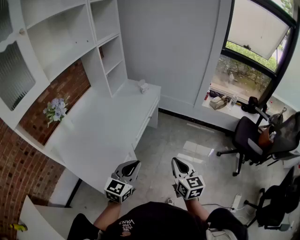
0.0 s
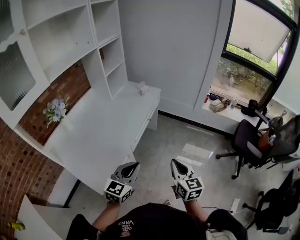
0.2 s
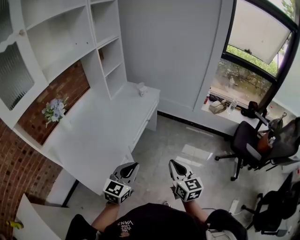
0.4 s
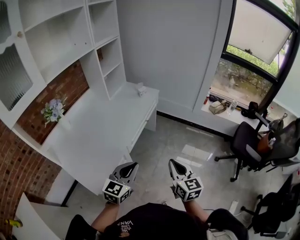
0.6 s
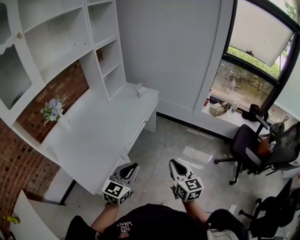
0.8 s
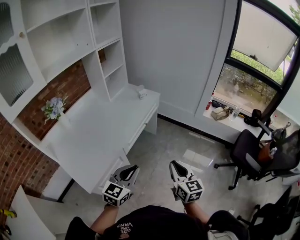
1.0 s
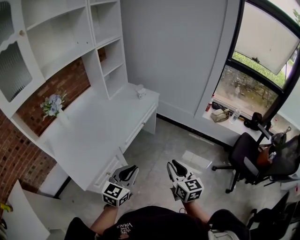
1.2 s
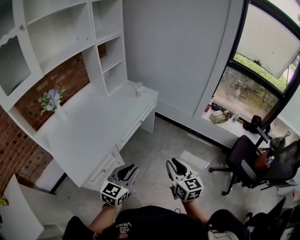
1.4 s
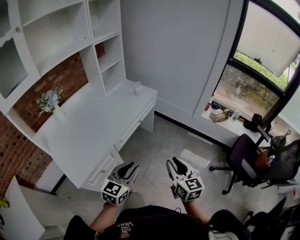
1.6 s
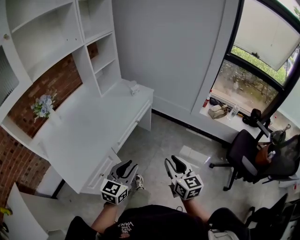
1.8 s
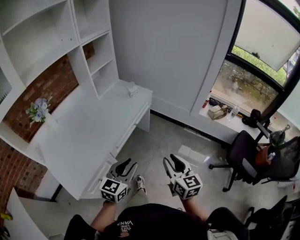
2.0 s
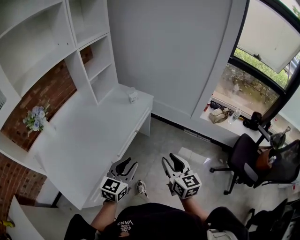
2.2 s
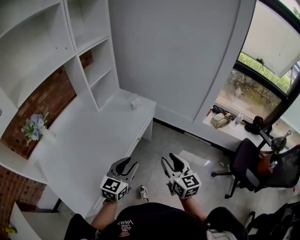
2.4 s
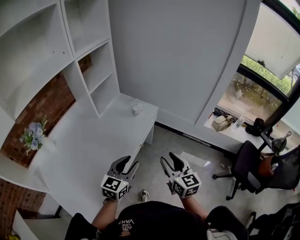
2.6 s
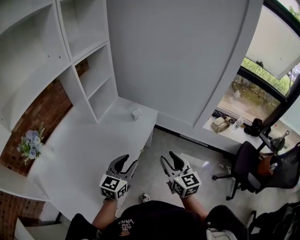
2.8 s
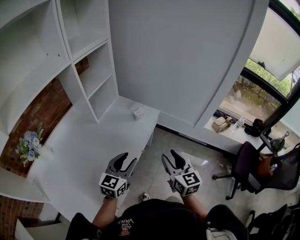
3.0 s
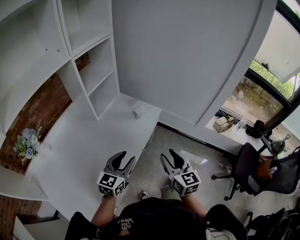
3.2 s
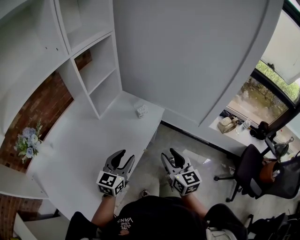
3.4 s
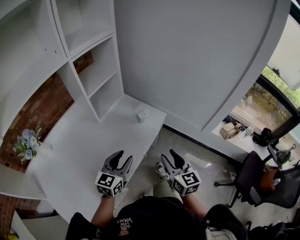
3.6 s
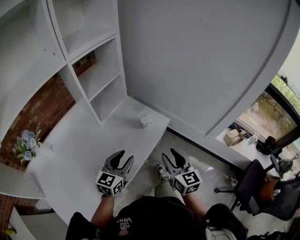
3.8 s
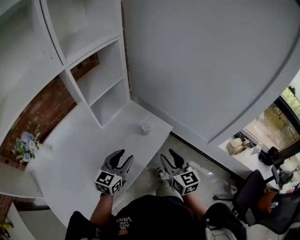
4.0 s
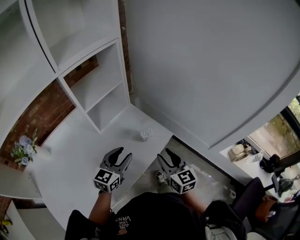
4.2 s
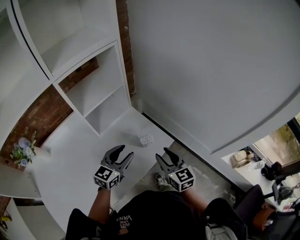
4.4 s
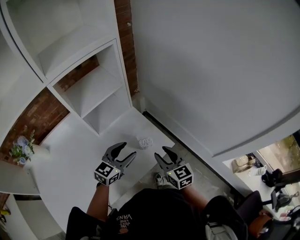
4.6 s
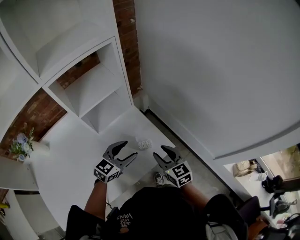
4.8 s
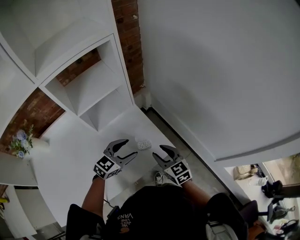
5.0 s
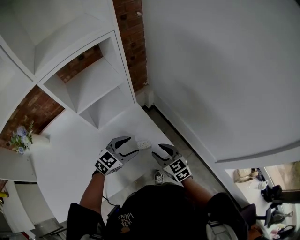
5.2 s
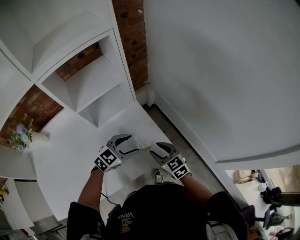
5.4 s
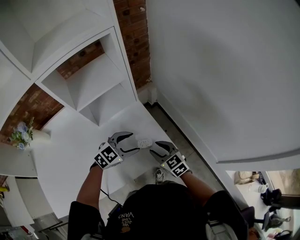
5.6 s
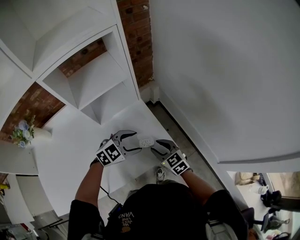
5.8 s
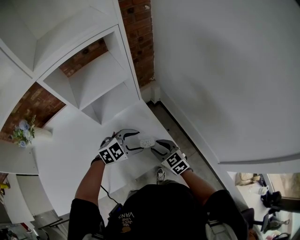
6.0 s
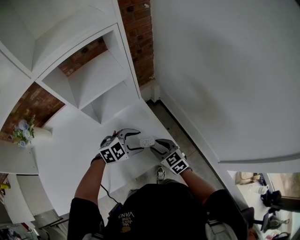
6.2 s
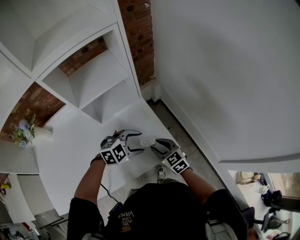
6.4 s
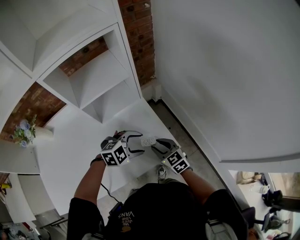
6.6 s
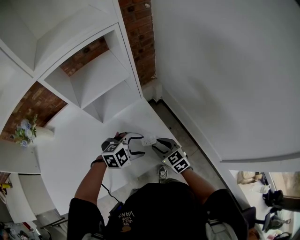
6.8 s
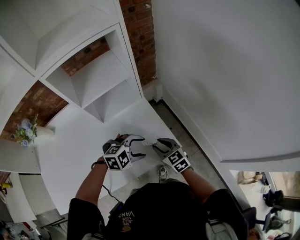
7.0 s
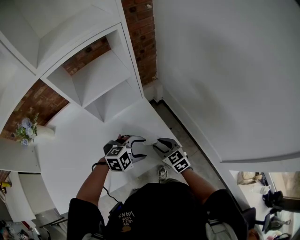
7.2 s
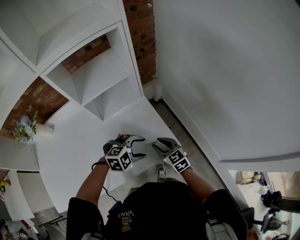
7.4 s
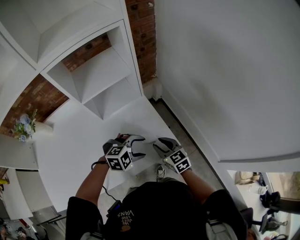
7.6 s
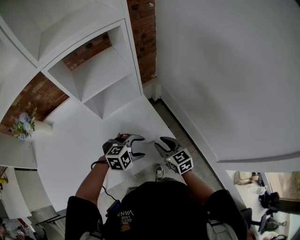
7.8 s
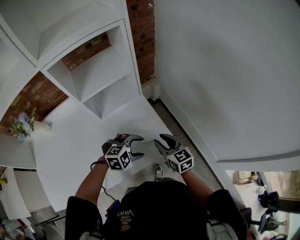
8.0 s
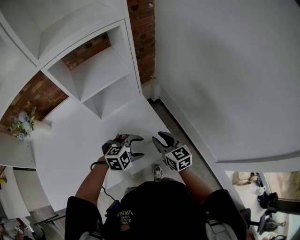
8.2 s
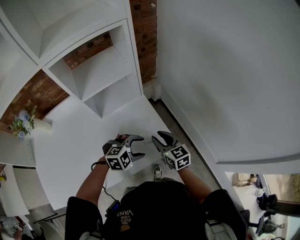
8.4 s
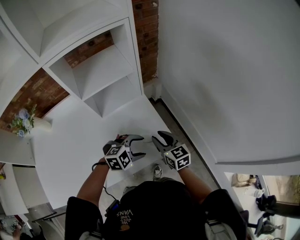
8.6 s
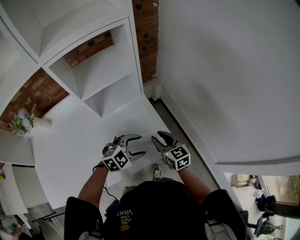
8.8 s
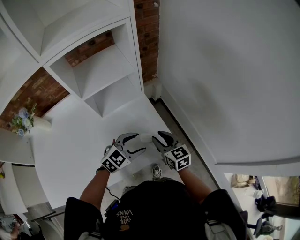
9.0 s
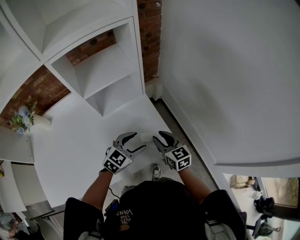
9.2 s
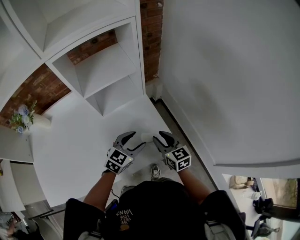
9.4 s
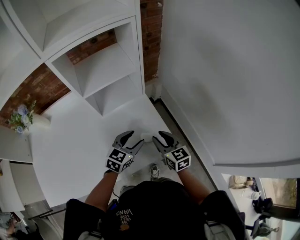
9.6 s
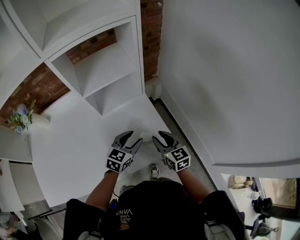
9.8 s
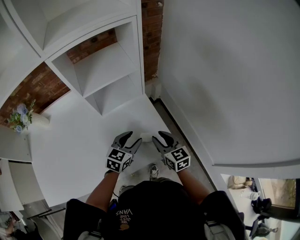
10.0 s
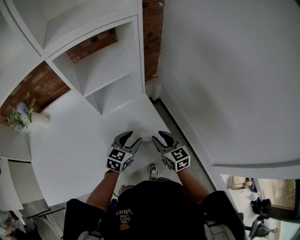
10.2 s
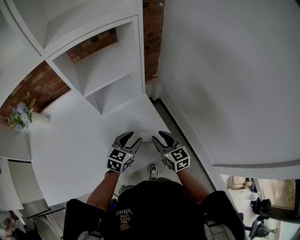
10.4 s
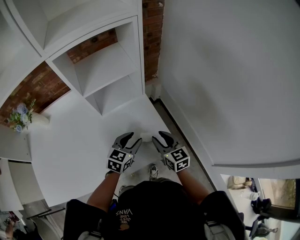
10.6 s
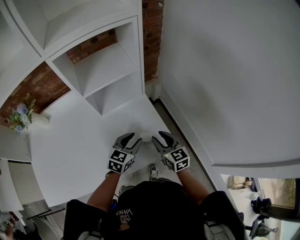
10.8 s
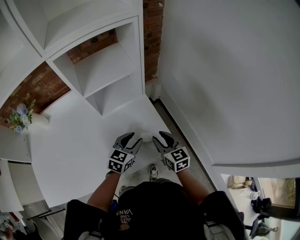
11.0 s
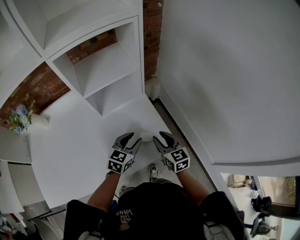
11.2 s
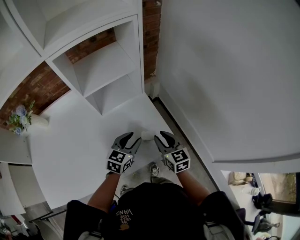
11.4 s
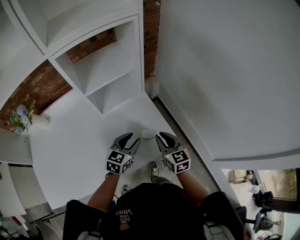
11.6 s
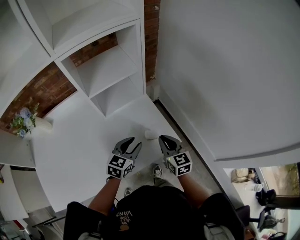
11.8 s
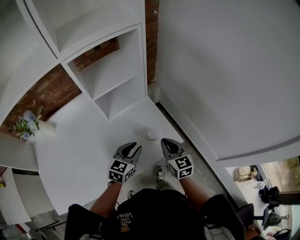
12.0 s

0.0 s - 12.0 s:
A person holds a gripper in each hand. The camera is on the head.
0.0 s - 1.6 s: The right gripper goes some 15 cm to the right and forward, and opens; the left gripper travels to the right by roughly 10 cm.
1.6 s - 3.0 s: Both grippers travel together forward, some 30 cm.
3.0 s - 4.4 s: The two grippers go approximately 25 cm forward. The right gripper turns by approximately 30 degrees.
4.4 s - 6.0 s: The left gripper moves downward, forward and to the right, some 15 cm, changes its angle by approximately 40 degrees, and opens. Meanwhile the right gripper goes about 15 cm downward and forward, and rotates roughly 40 degrees.
6.0 s - 7.6 s: The left gripper is displaced backward by some 5 cm.
7.6 s - 9.0 s: The left gripper turns by roughly 30 degrees.
9.0 s - 10.4 s: The left gripper swivels approximately 30 degrees.
10.4 s - 12.0 s: The two grippers go approximately 5 cm backward. The right gripper closes.

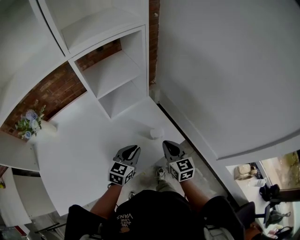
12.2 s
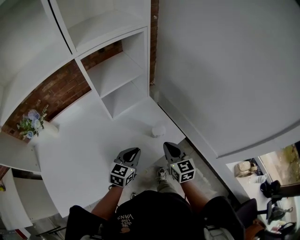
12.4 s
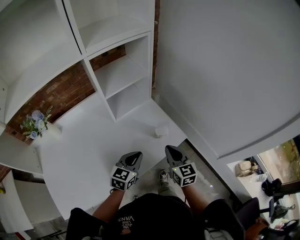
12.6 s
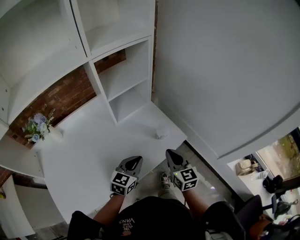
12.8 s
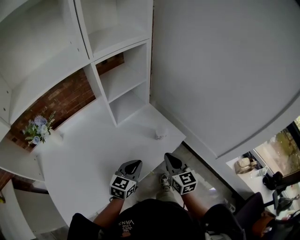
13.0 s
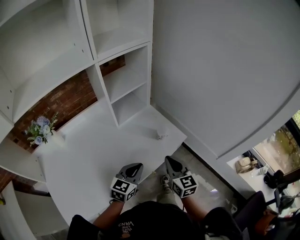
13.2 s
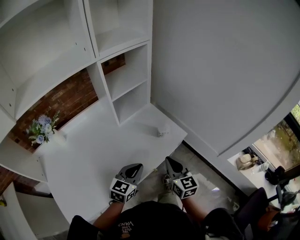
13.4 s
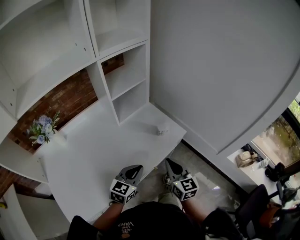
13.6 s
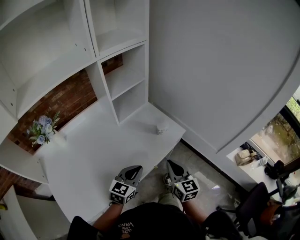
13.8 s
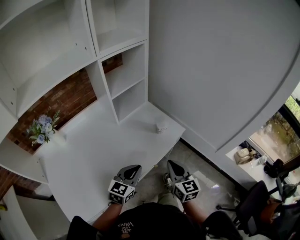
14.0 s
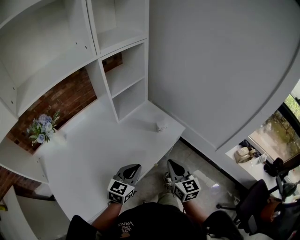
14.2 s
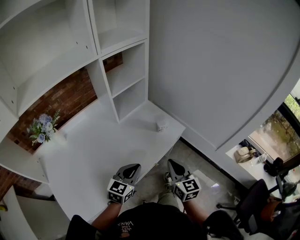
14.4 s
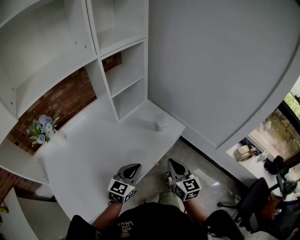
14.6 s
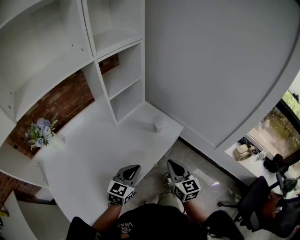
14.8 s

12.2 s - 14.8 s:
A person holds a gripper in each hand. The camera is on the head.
12.2 s - 13.4 s: The two grippers go approximately 15 cm backward.
13.4 s - 14.8 s: The right gripper travels backward by approximately 5 cm.

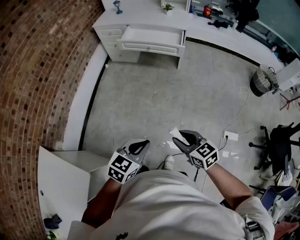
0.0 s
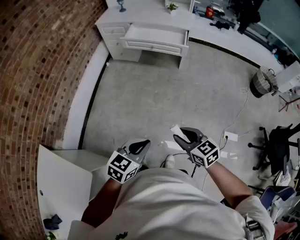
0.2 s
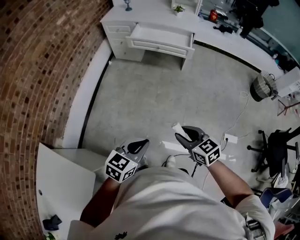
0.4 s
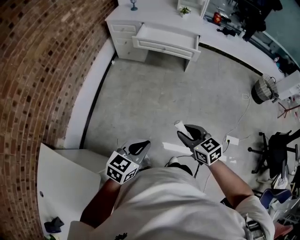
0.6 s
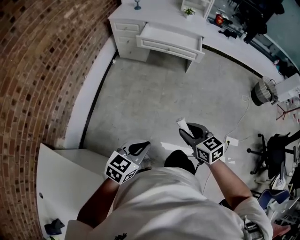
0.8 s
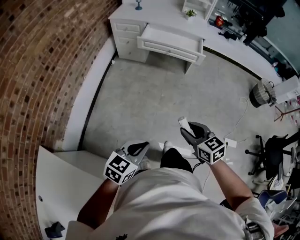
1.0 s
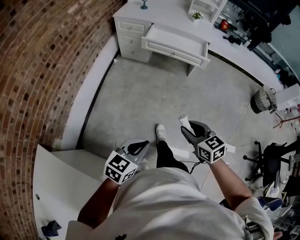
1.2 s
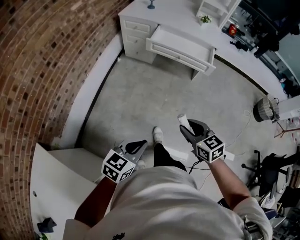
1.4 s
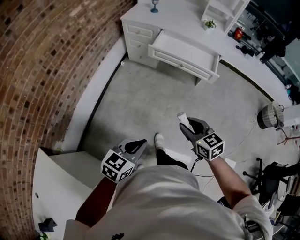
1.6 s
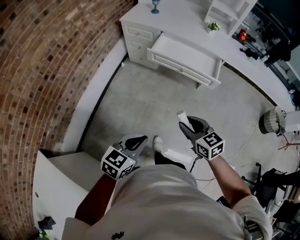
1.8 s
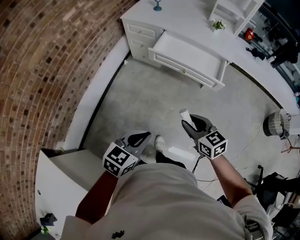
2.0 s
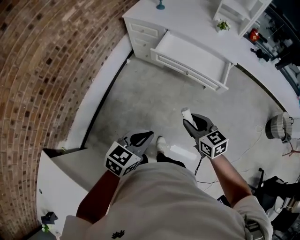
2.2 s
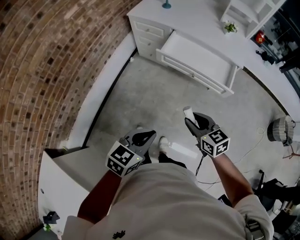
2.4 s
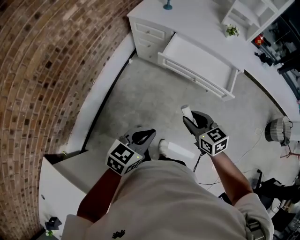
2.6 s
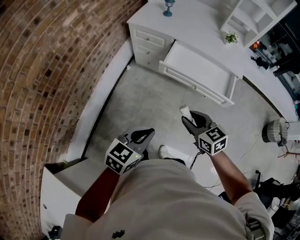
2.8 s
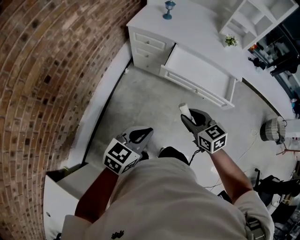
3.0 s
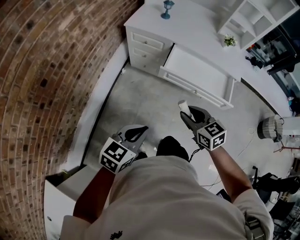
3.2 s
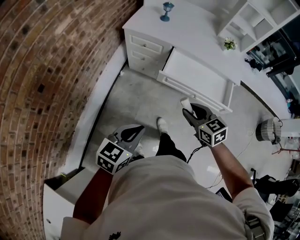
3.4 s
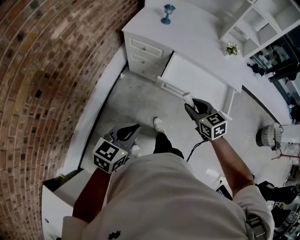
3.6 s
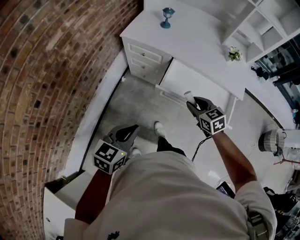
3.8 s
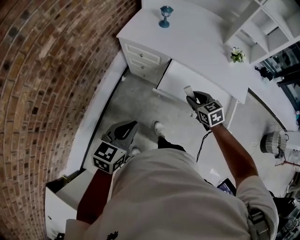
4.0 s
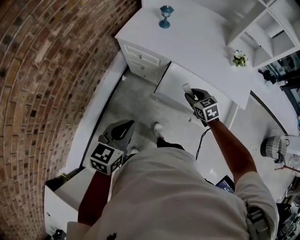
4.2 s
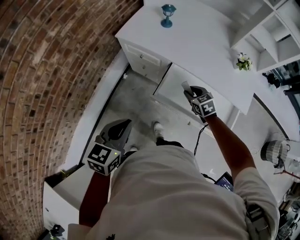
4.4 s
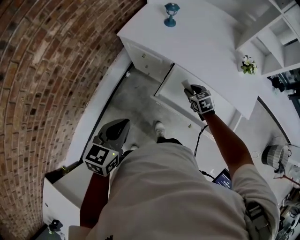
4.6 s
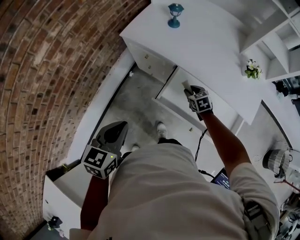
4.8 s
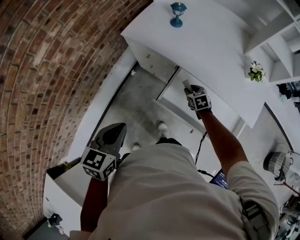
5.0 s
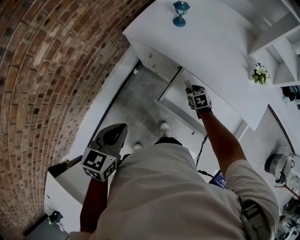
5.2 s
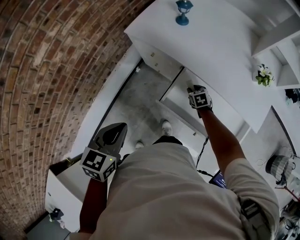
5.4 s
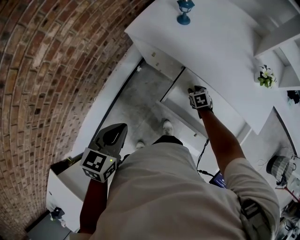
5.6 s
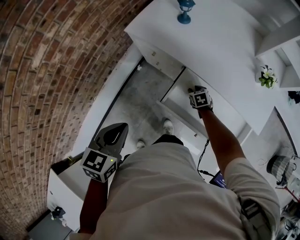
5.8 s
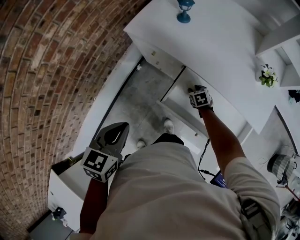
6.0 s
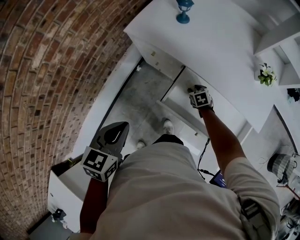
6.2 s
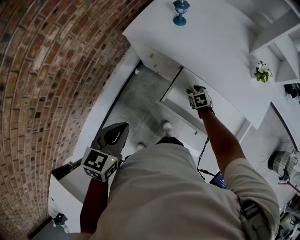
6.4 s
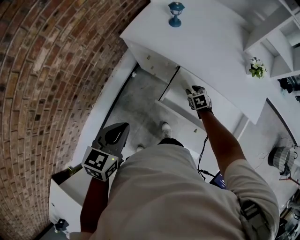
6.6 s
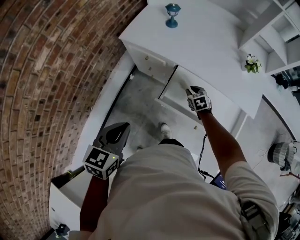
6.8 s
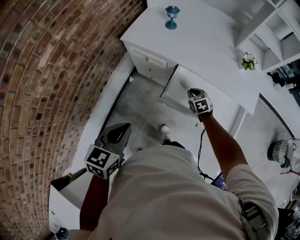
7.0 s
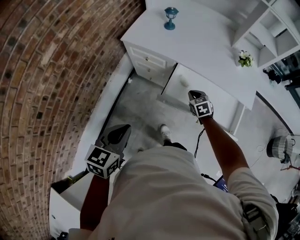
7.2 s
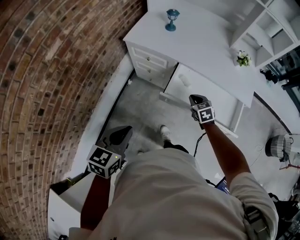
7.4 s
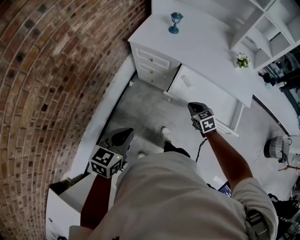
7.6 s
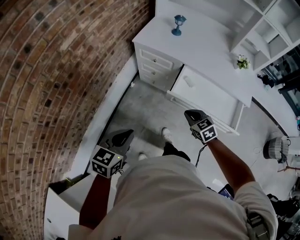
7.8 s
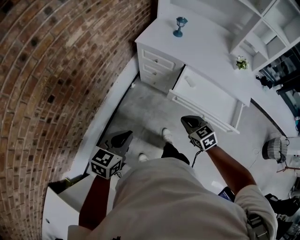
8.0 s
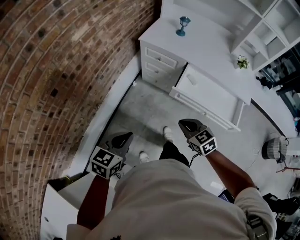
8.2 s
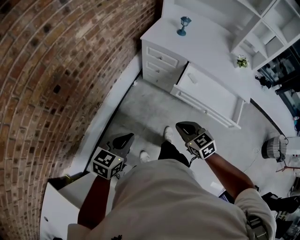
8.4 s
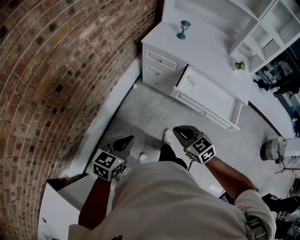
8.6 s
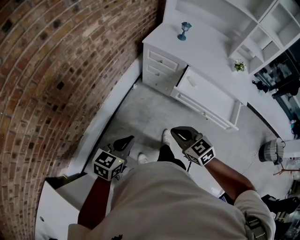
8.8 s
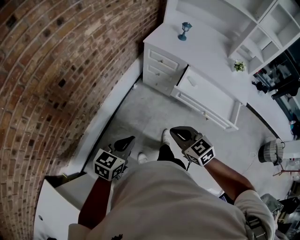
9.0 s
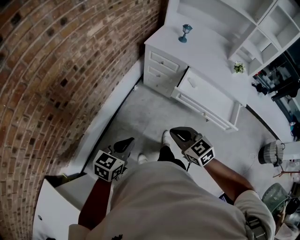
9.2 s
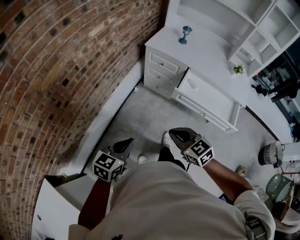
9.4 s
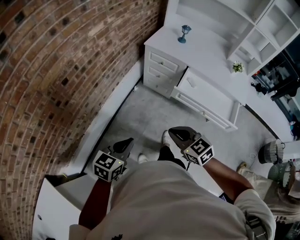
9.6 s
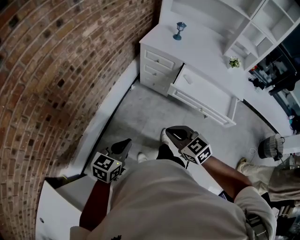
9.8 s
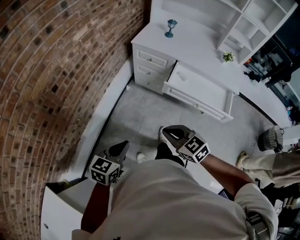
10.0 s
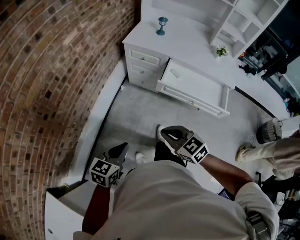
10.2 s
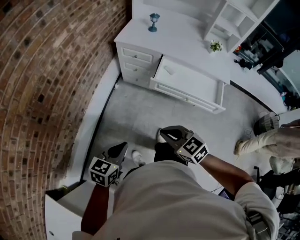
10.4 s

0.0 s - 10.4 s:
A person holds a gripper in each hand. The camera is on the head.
0.0 s - 1.4 s: The right gripper moves forward and to the left, about 25 cm. Meanwhile the left gripper travels to the left and forward by about 25 cm.
1.4 s - 3.0 s: The two grippers go roughly 35 cm forward.
3.0 s - 4.4 s: The left gripper travels forward by some 30 cm, and swivels approximately 20 degrees. The right gripper moves forward and downward, roughly 40 cm.
4.4 s - 6.0 s: The left gripper is displaced forward by roughly 5 cm. The right gripper moves downward and forward, some 20 cm.
6.0 s - 7.4 s: The right gripper is displaced upward and backward by some 20 cm, and closes. Meanwhile the left gripper is displaced backward and to the left by some 15 cm.
7.4 s - 9.0 s: The right gripper shifts about 40 cm backward, to the left and upward, and rotates roughly 30 degrees; the left gripper heads backward and to the left, covering about 20 cm.
9.0 s - 10.4 s: The left gripper moves roughly 5 cm, while the right gripper shifts by some 5 cm.
